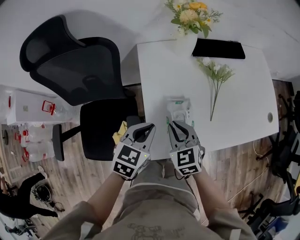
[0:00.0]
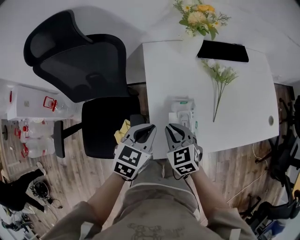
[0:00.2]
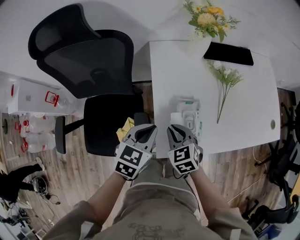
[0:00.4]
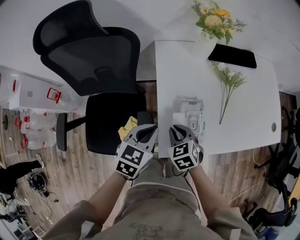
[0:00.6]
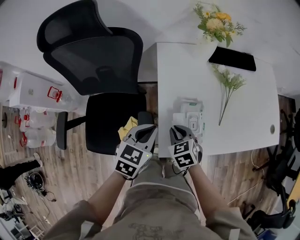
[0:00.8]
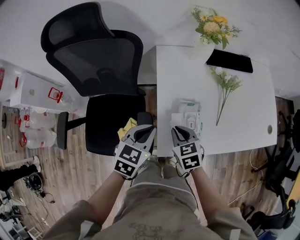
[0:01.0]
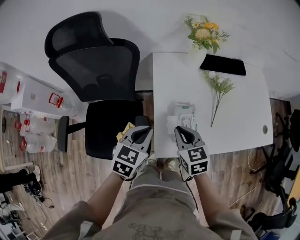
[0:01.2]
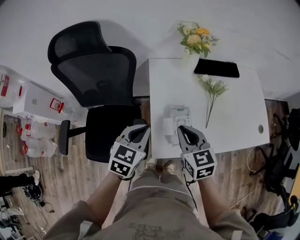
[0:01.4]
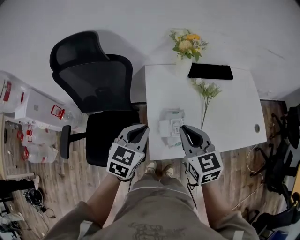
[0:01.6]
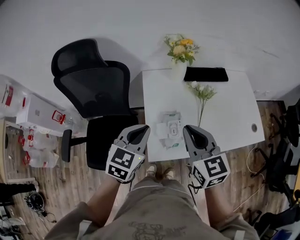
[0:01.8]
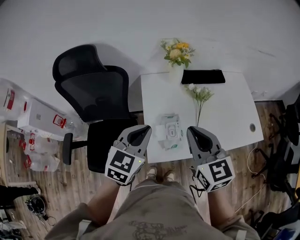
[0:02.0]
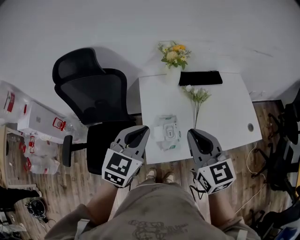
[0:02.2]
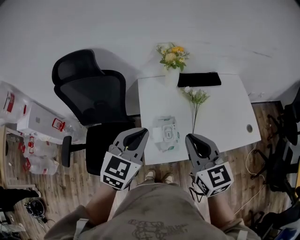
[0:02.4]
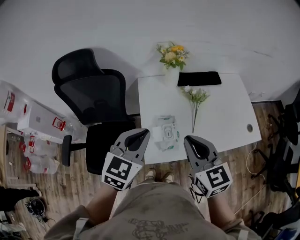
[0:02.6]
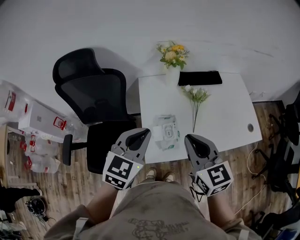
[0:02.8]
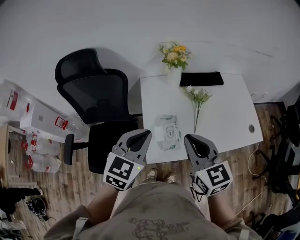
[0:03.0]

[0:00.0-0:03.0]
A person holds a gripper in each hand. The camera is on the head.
0:00.0 to 0:01.6: The left gripper goes some 10 cm upward, while the right gripper shifts about 15 cm upward.
0:01.6 to 0:03.0: The right gripper shifts approximately 5 cm upward, while the left gripper is displaced upward and to the right by roughly 10 cm.

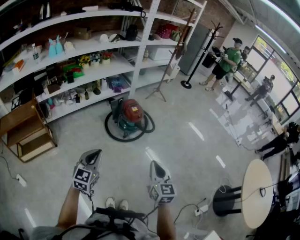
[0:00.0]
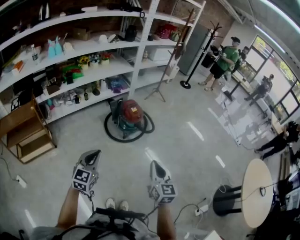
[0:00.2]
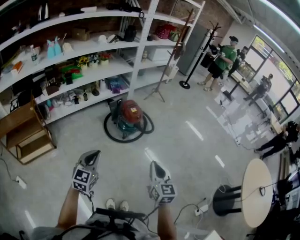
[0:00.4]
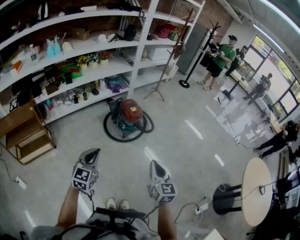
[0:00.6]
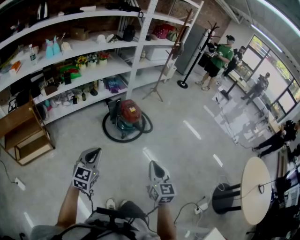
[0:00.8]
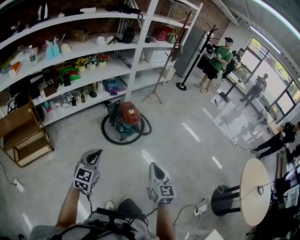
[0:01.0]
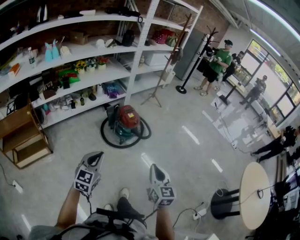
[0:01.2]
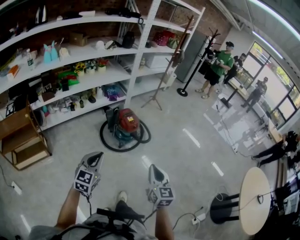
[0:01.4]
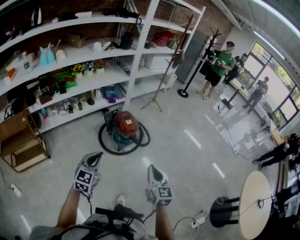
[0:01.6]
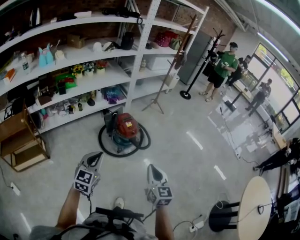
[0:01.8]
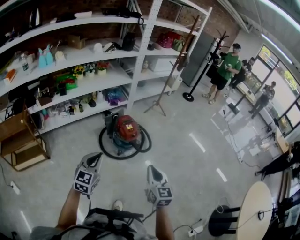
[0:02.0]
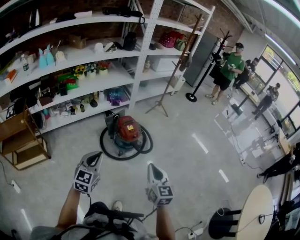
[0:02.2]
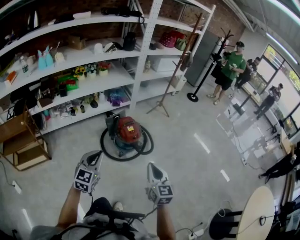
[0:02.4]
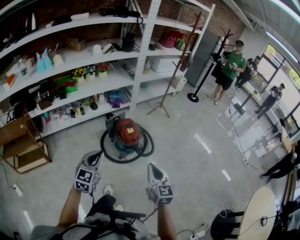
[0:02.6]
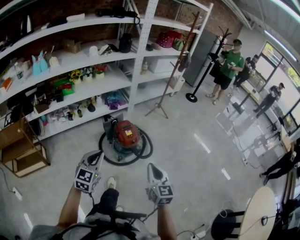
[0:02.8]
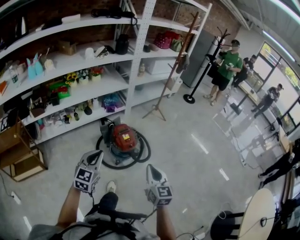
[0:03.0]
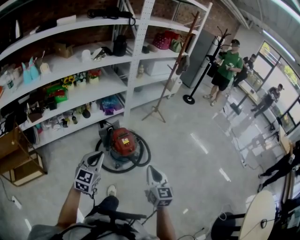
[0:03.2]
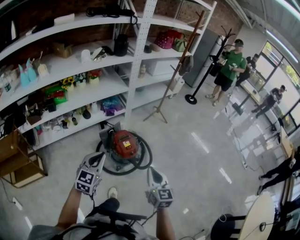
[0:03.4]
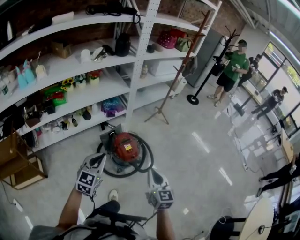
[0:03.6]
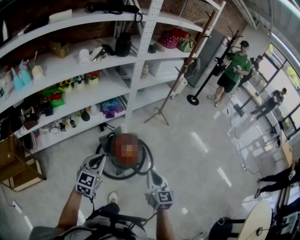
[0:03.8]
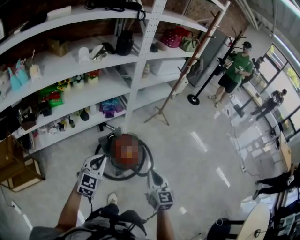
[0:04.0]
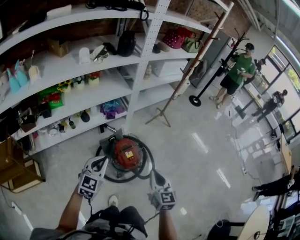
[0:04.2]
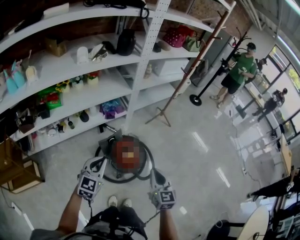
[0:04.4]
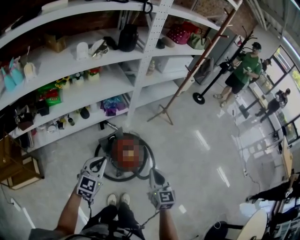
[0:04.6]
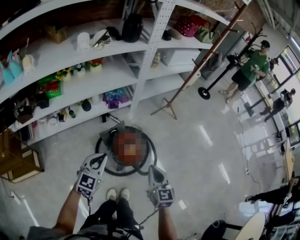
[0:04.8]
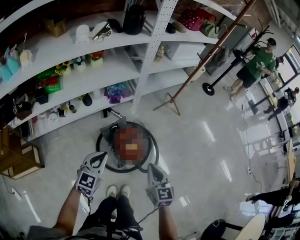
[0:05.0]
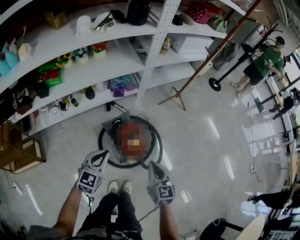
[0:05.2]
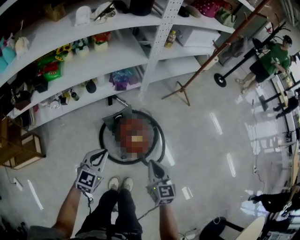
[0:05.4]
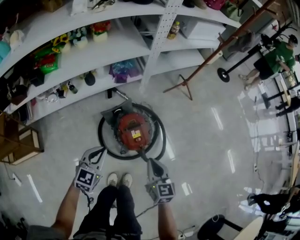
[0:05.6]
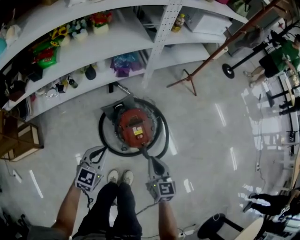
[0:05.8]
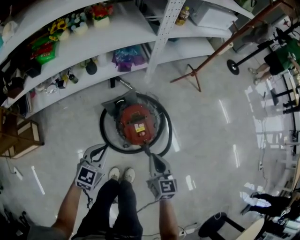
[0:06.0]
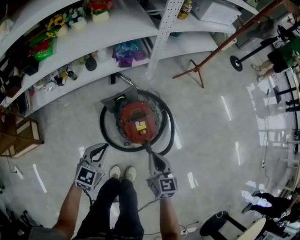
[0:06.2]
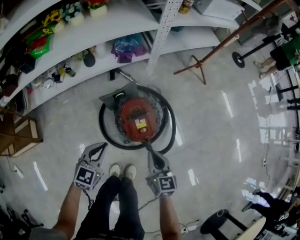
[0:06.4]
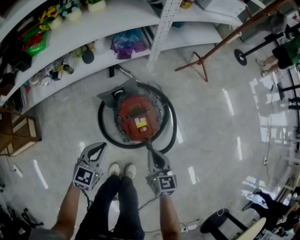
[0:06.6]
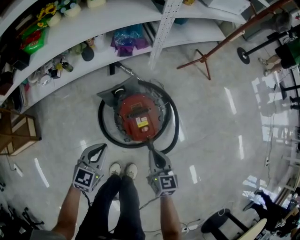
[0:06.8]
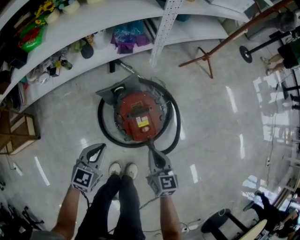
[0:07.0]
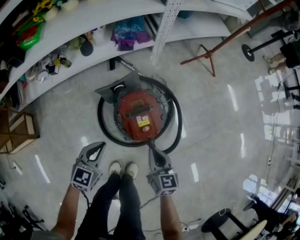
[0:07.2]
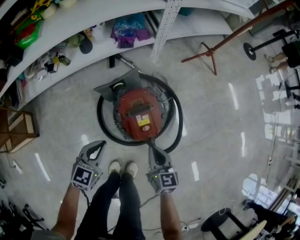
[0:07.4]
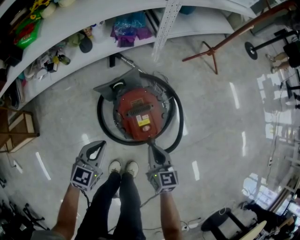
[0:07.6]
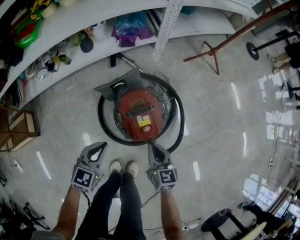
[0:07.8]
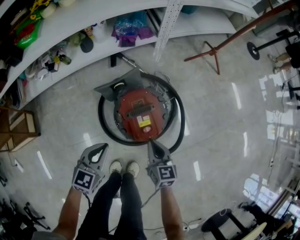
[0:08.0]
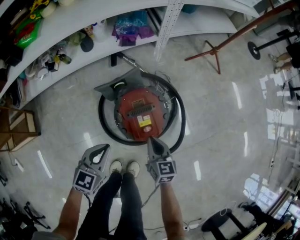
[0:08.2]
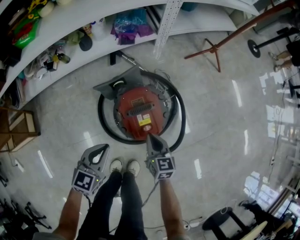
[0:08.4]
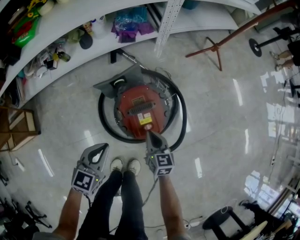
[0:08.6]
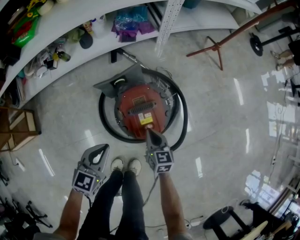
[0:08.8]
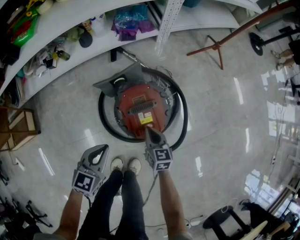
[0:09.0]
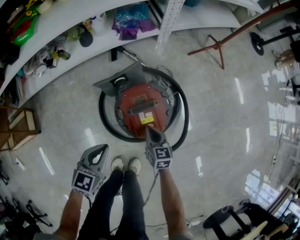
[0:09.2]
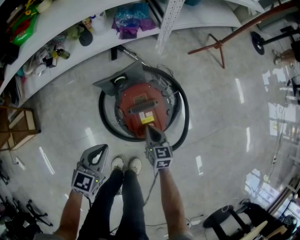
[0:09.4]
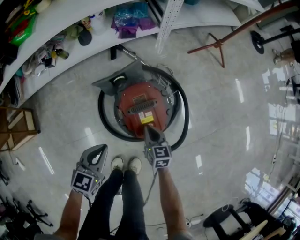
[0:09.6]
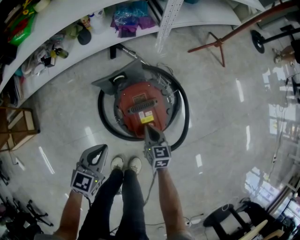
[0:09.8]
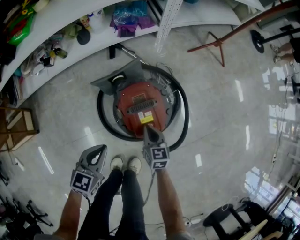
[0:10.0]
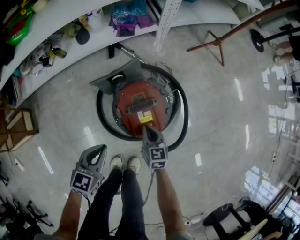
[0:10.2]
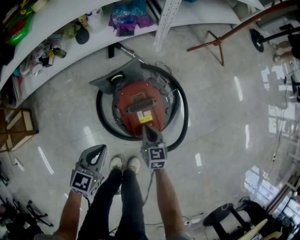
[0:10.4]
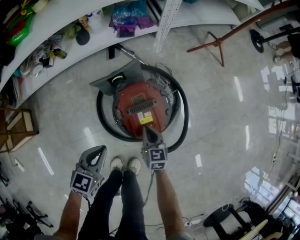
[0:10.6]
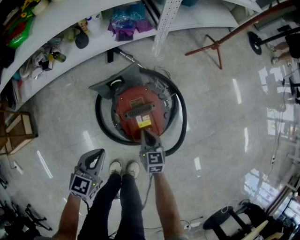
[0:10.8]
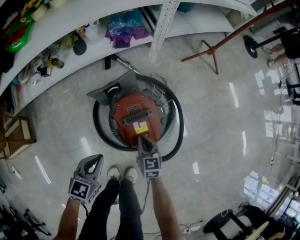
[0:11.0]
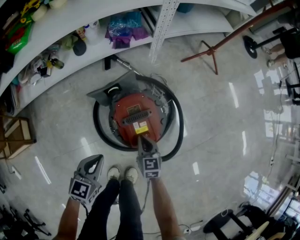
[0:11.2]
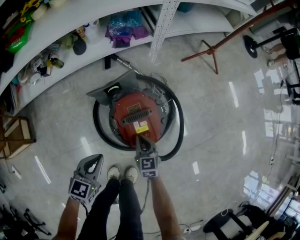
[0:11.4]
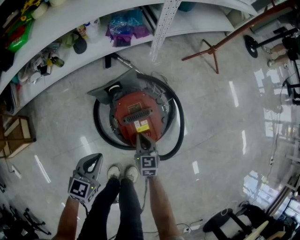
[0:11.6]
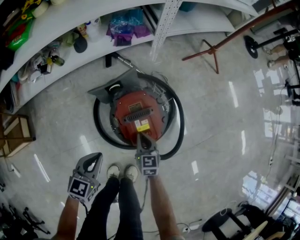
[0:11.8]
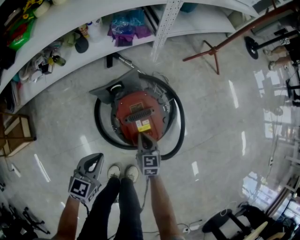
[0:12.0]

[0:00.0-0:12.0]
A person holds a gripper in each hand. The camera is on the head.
0:00.0 to 0:01.6: The grippers both shift forward by roughly 10 cm.
0:01.6 to 0:03.0: Both grippers move forward, approximately 20 cm.
0:03.0 to 0:04.4: Both grippers travel together forward, about 25 cm.
0:04.4 to 0:06.0: Both grippers move downward, approximately 25 cm.
0:06.0 to 0:07.6: Both grippers move downward, roughly 15 cm.
0:07.6 to 0:09.0: The right gripper is displaced downward and forward by roughly 10 cm.
0:09.0 to 0:12.0: The grippers move only a little.

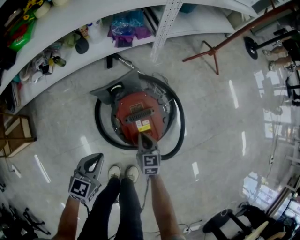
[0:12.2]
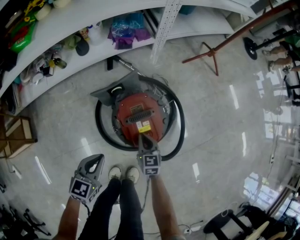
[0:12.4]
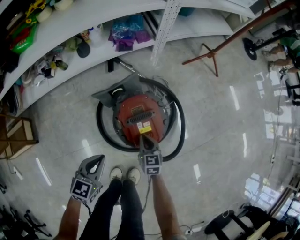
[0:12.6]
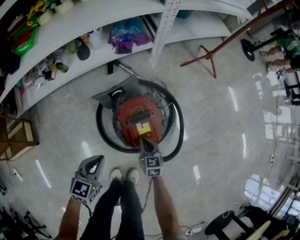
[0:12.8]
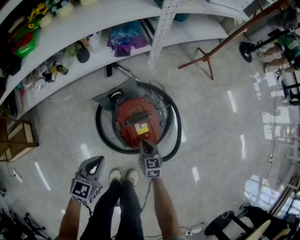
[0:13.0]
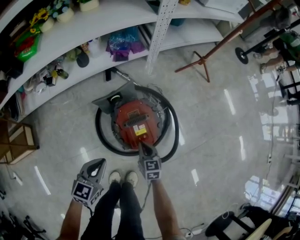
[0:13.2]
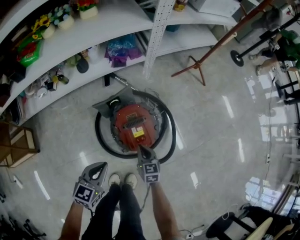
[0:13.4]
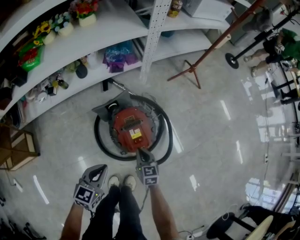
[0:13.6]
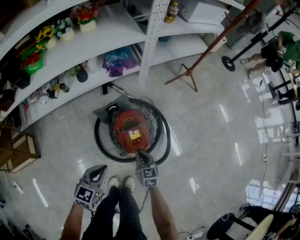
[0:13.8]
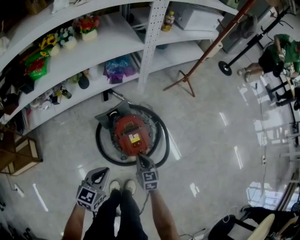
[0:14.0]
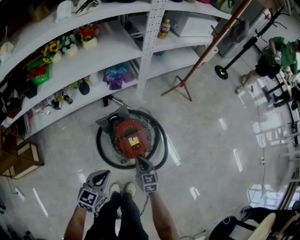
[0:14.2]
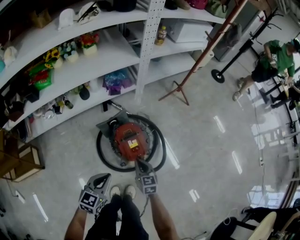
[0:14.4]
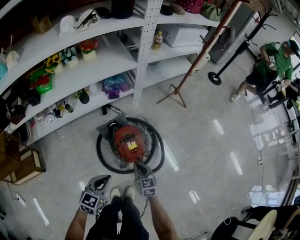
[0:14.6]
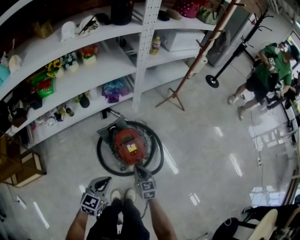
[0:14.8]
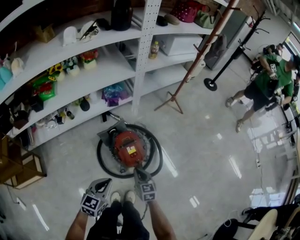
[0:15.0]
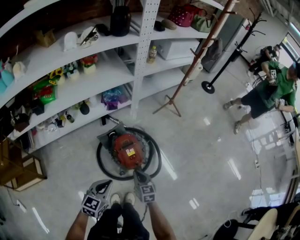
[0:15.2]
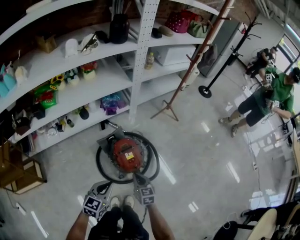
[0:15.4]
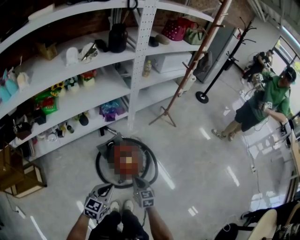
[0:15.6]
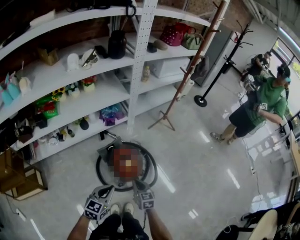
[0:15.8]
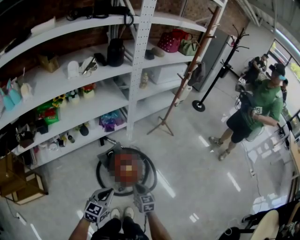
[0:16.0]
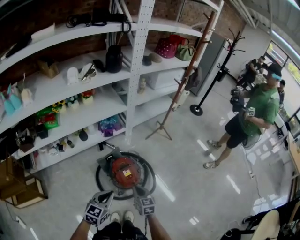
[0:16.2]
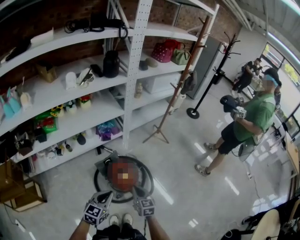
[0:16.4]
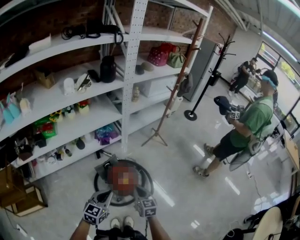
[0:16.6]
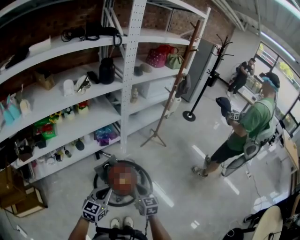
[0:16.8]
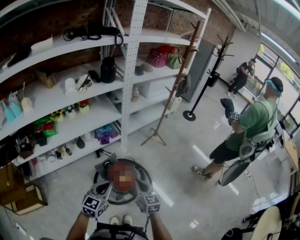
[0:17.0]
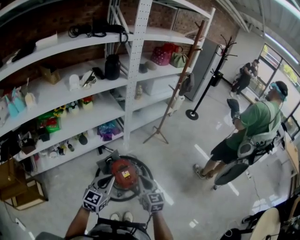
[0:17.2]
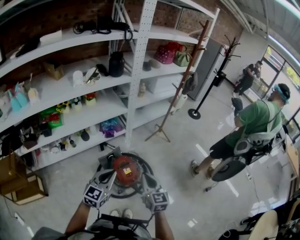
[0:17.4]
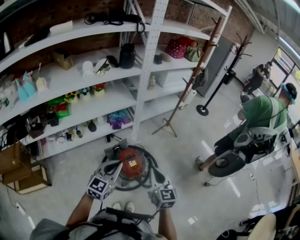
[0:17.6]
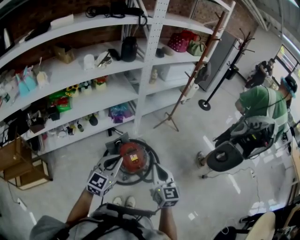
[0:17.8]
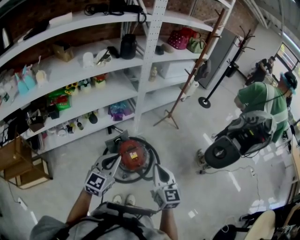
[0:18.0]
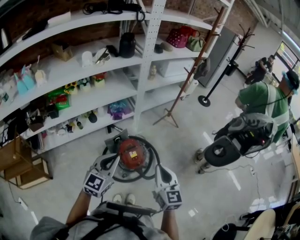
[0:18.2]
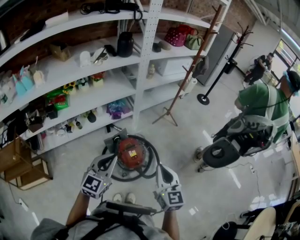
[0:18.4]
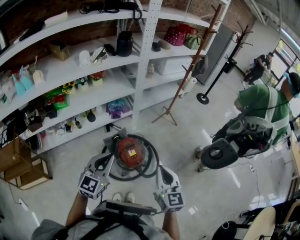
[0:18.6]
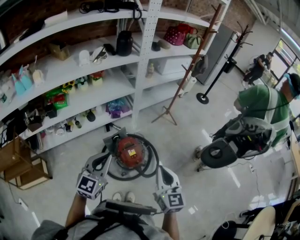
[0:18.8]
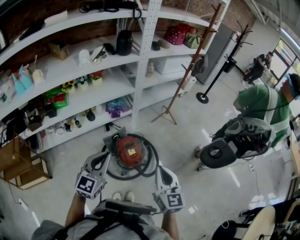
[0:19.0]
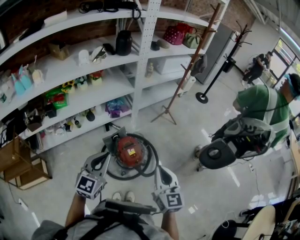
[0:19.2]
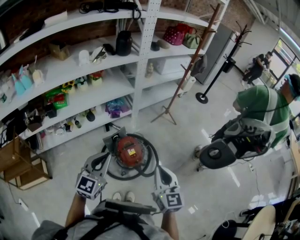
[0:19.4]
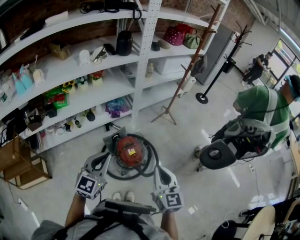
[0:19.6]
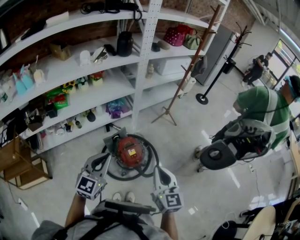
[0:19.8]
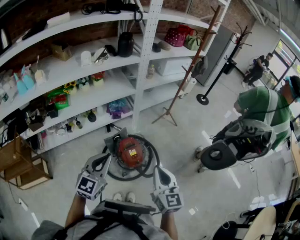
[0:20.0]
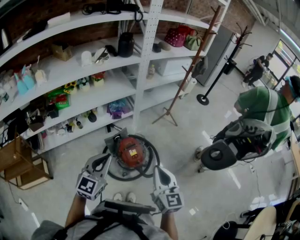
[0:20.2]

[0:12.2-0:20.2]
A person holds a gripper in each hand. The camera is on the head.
0:12.2 to 0:13.8: The left gripper is displaced upward by some 10 cm. The right gripper moves upward and backward, some 15 cm.
0:13.8 to 0:15.4: The left gripper travels upward by some 15 cm, while the right gripper travels upward and backward by roughly 20 cm.
0:15.4 to 0:17.0: The grippers both shift upward by some 20 cm.
0:17.0 to 0:18.6: The right gripper is displaced upward, backward and to the right by roughly 15 cm. The left gripper travels upward by about 5 cm.
0:18.6 to 0:20.2: The grippers move only a little.

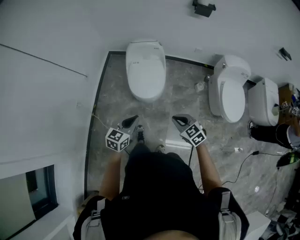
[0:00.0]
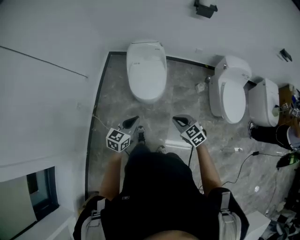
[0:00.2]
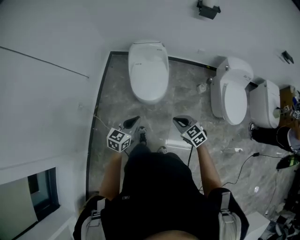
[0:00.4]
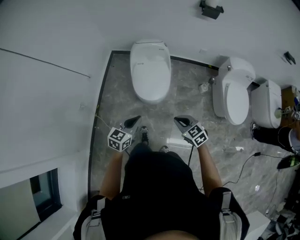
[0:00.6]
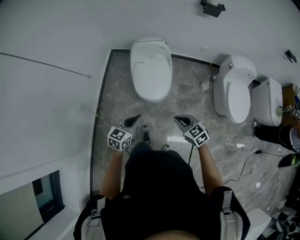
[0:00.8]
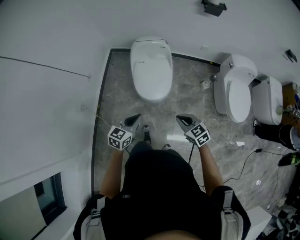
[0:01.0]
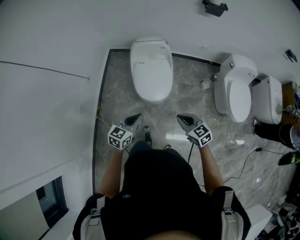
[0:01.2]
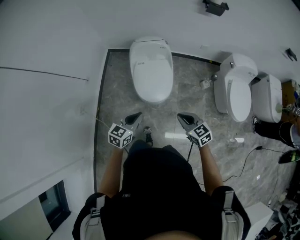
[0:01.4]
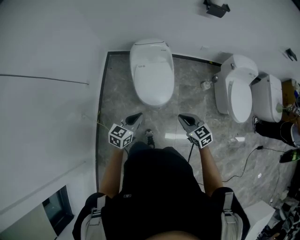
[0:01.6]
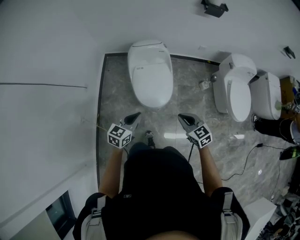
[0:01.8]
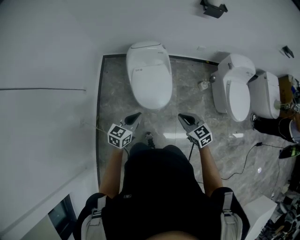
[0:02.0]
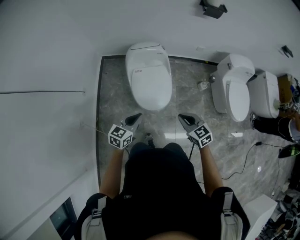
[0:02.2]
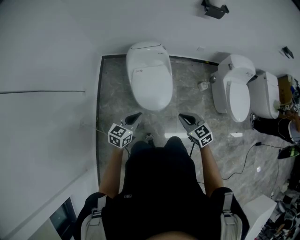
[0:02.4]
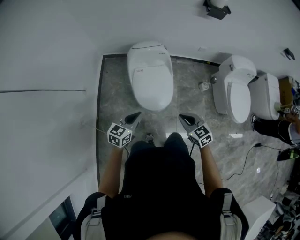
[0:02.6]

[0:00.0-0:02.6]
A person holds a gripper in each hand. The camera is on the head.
0:00.0 to 0:01.2: Both grippers travel together forward and to the left, roughly 10 cm.
0:01.2 to 0:02.6: The right gripper shifts some 10 cm forward; the left gripper heads forward and to the left, covering some 15 cm.
